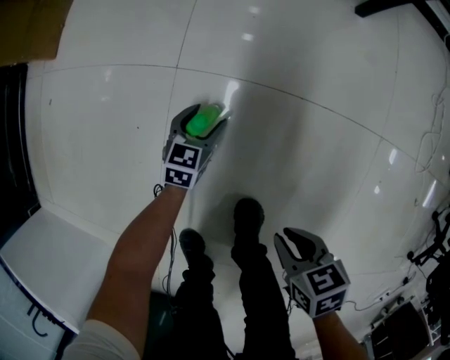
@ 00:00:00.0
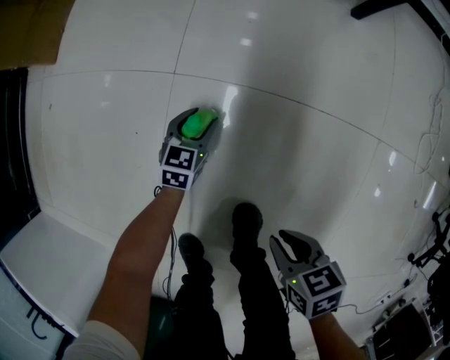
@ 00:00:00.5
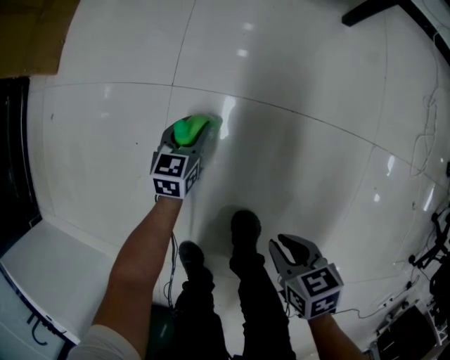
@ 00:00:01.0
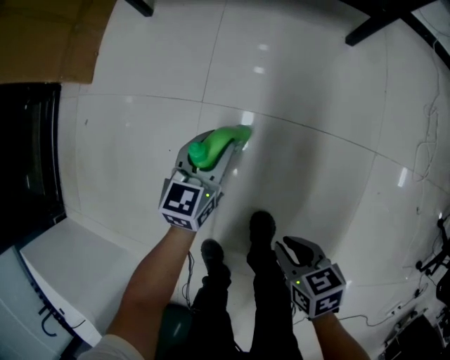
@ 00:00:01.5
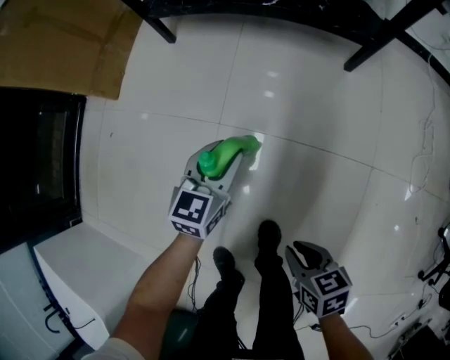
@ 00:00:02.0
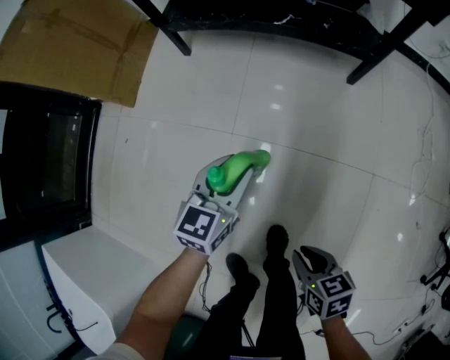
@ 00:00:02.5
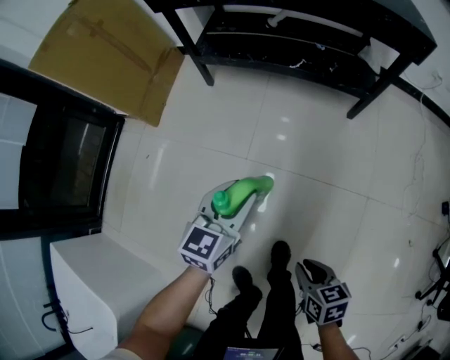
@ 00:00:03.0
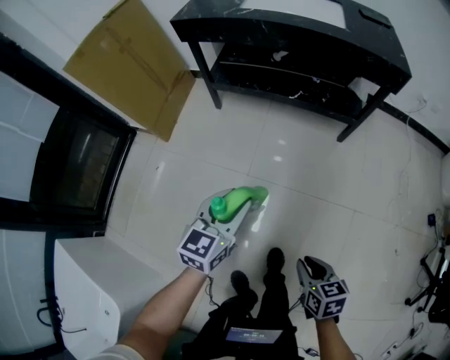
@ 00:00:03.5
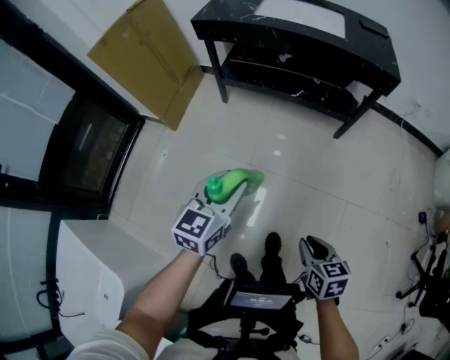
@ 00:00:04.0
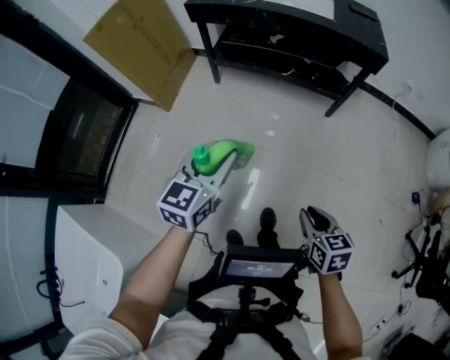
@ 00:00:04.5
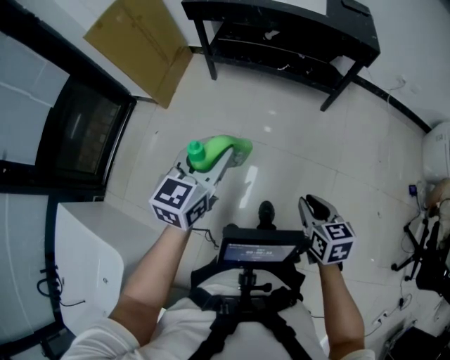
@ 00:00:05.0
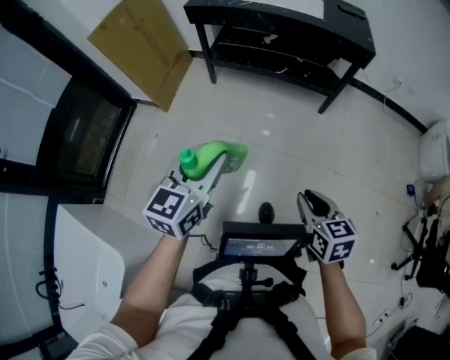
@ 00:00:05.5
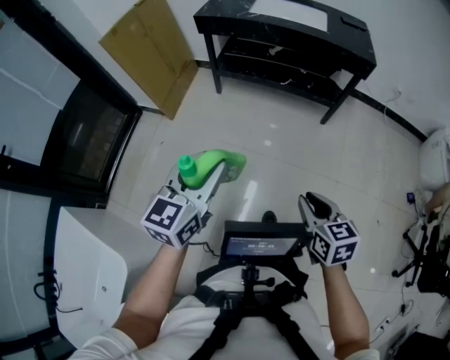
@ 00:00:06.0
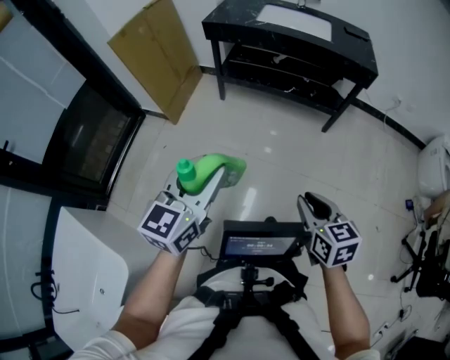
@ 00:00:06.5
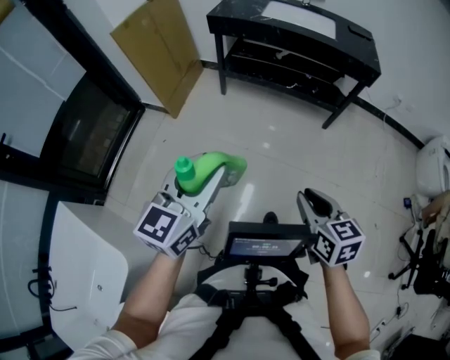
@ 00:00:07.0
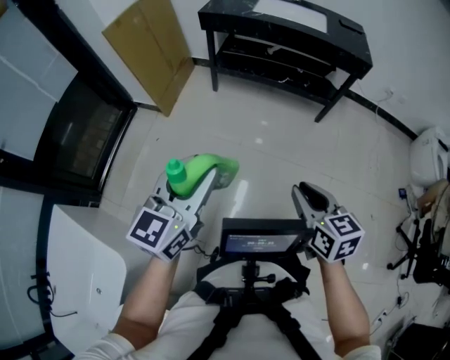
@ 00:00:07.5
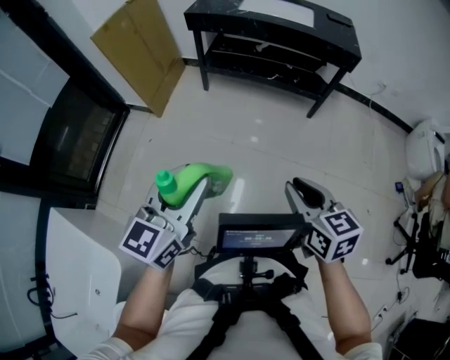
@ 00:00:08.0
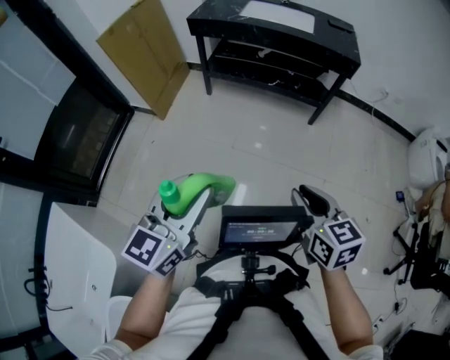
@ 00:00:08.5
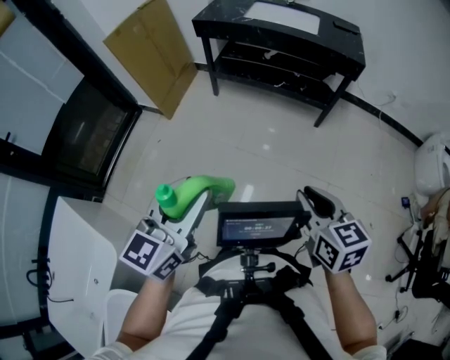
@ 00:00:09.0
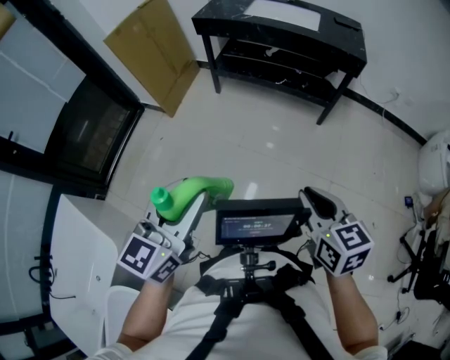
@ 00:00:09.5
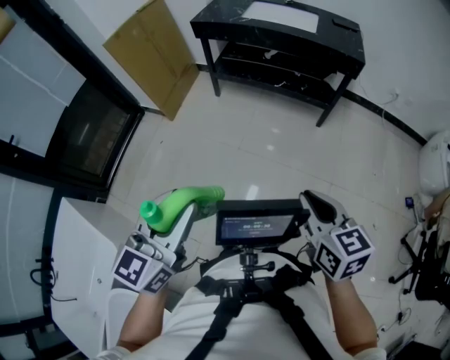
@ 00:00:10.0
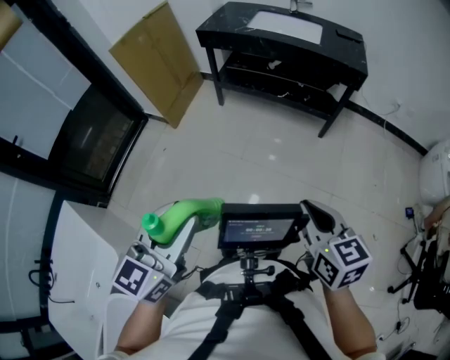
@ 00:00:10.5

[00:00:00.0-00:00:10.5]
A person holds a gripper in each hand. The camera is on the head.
00:00:00.0 to 00:00:02.0: The right gripper moves upward, approximately 15 cm; the left gripper heads upward, covering roughly 30 cm, and closes up.
00:00:02.0 to 00:00:04.0: Both grippers travel together upward, approximately 35 cm. The right gripper swivels about 20 degrees.
00:00:04.0 to 00:00:06.5: The right gripper goes about 15 cm upward and to the left, while the left gripper shifts about 20 cm upward, backward and to the left.
00:00:06.5 to 00:00:08.5: The left gripper moves backward, roughly 10 cm; the right gripper shifts by approximately 5 cm.
00:00:08.5 to 00:00:10.5: The grippers make only small movements.

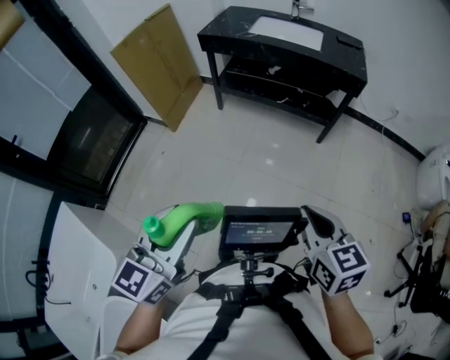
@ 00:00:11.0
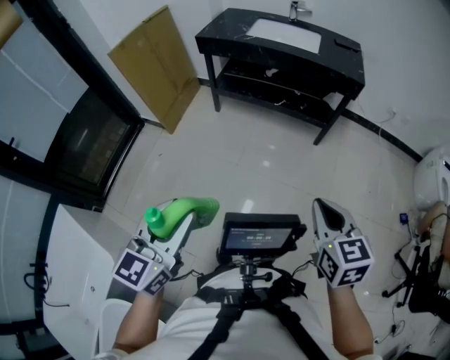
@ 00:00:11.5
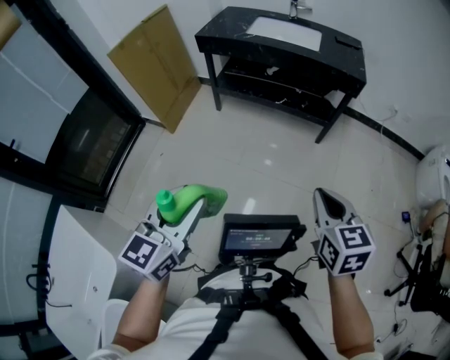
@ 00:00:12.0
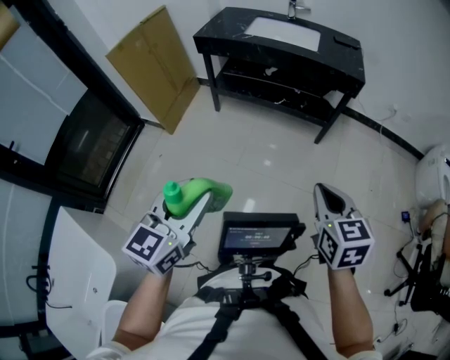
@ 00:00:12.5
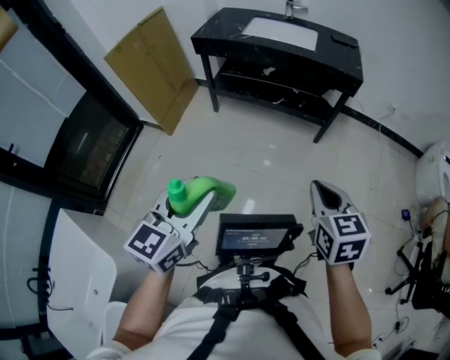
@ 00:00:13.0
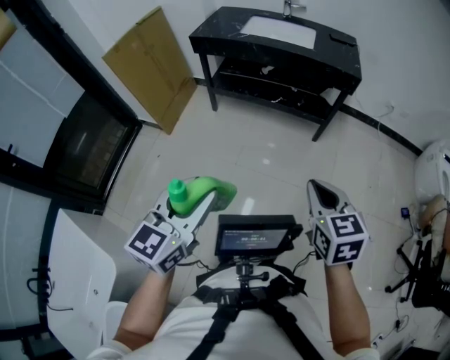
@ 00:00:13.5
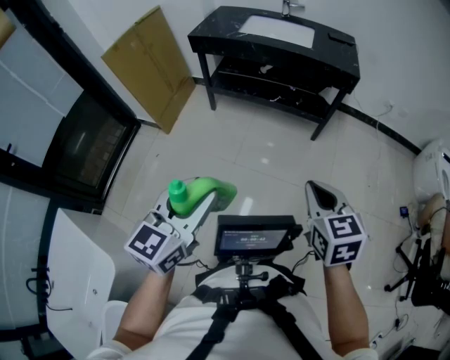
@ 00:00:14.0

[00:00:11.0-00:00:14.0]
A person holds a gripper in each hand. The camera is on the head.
00:00:11.0 to 00:00:12.5: Both grippers move forward, approximately 5 cm.
00:00:12.5 to 00:00:14.0: The grippers move only a little.

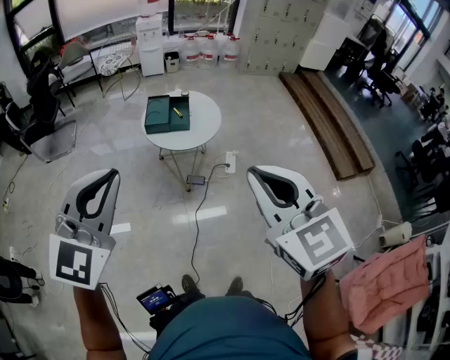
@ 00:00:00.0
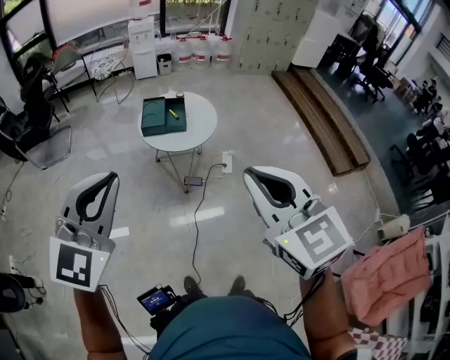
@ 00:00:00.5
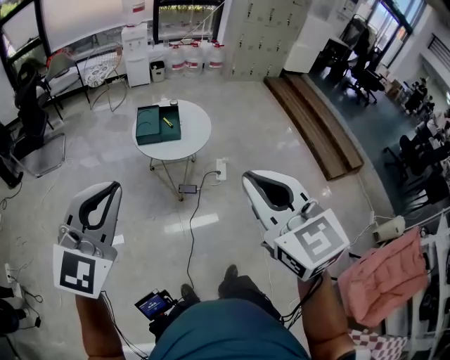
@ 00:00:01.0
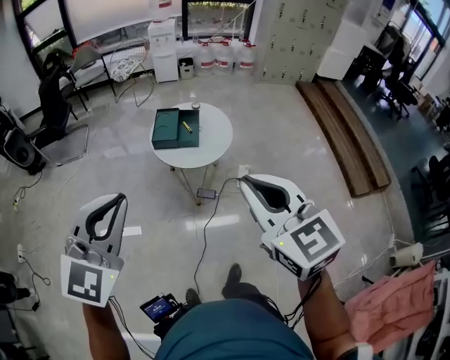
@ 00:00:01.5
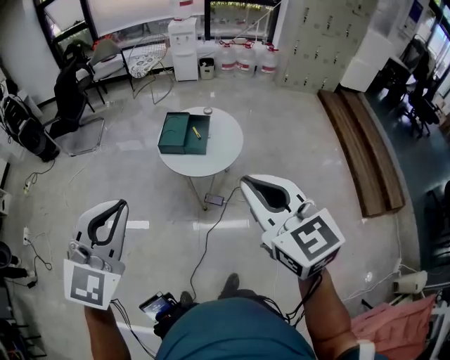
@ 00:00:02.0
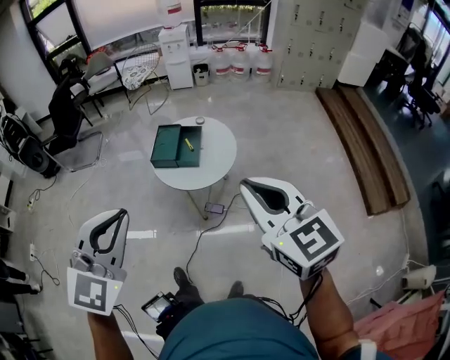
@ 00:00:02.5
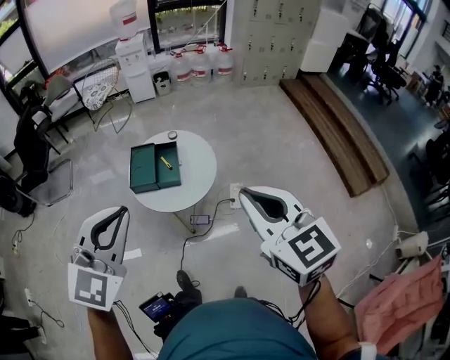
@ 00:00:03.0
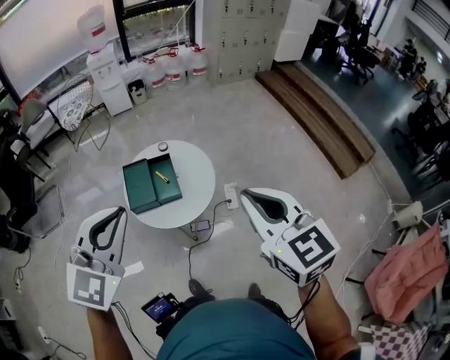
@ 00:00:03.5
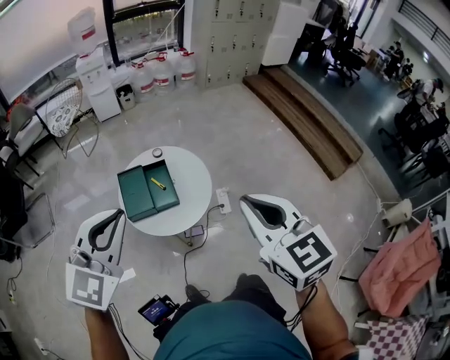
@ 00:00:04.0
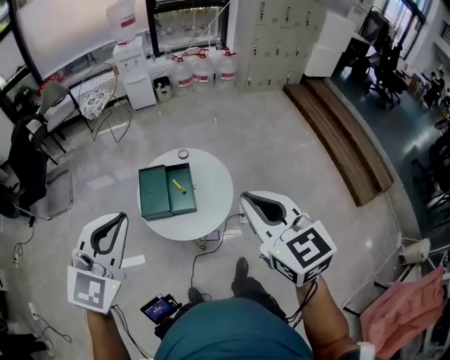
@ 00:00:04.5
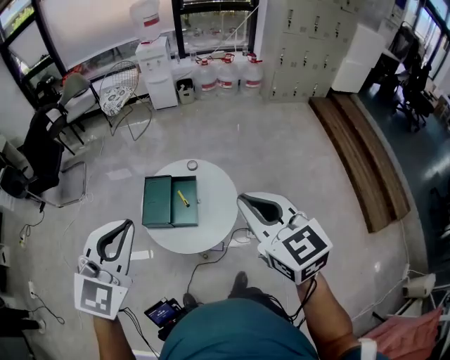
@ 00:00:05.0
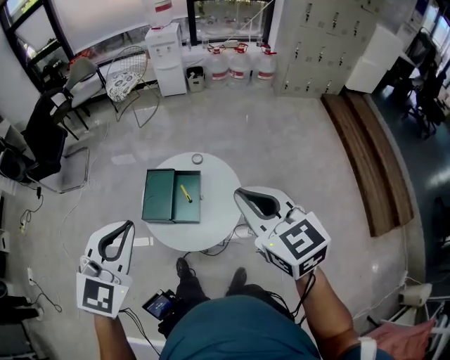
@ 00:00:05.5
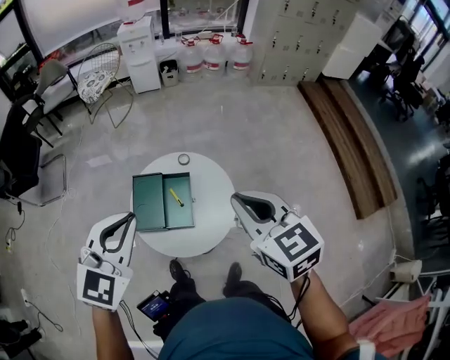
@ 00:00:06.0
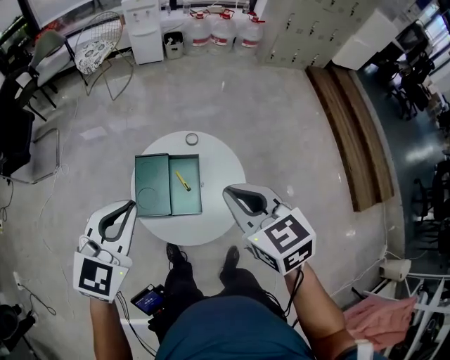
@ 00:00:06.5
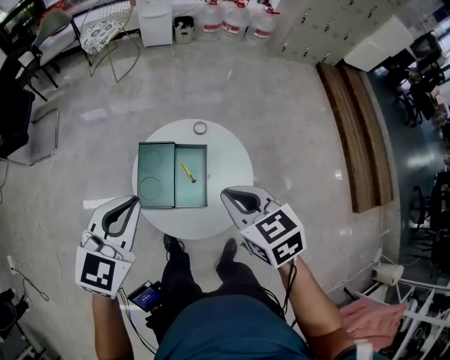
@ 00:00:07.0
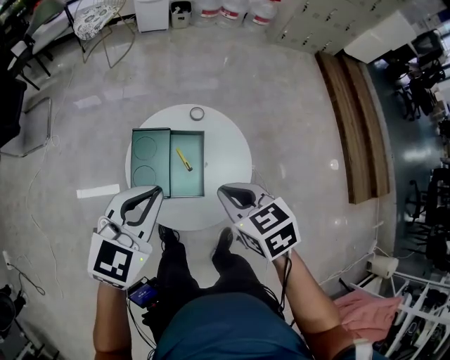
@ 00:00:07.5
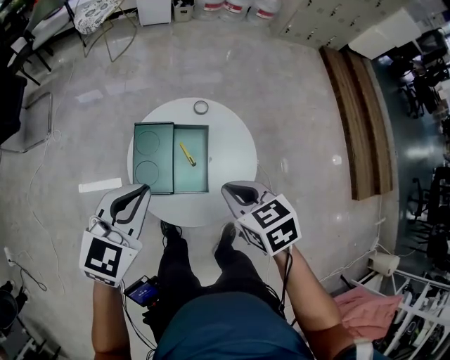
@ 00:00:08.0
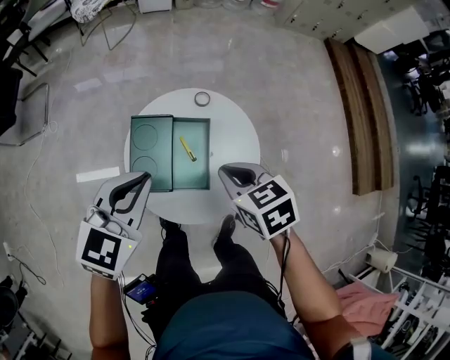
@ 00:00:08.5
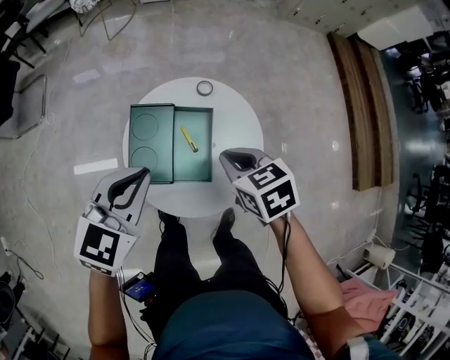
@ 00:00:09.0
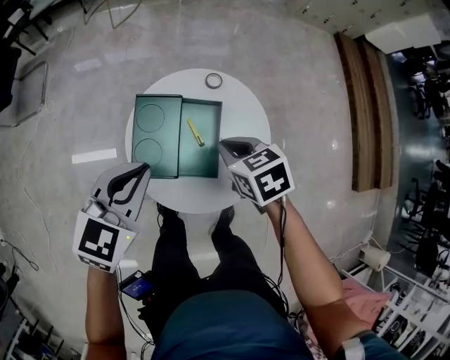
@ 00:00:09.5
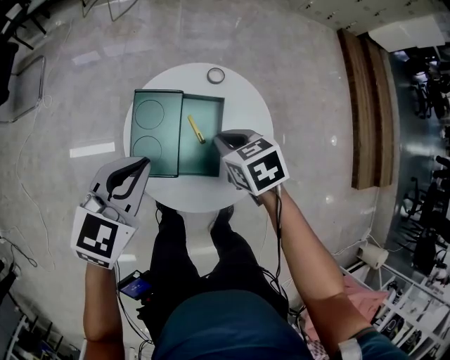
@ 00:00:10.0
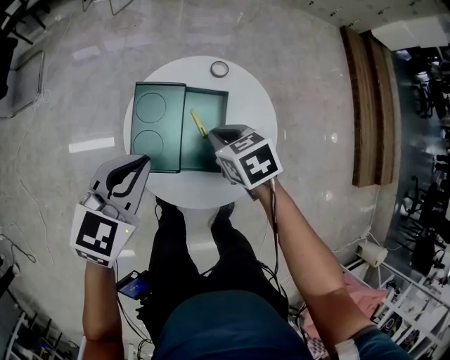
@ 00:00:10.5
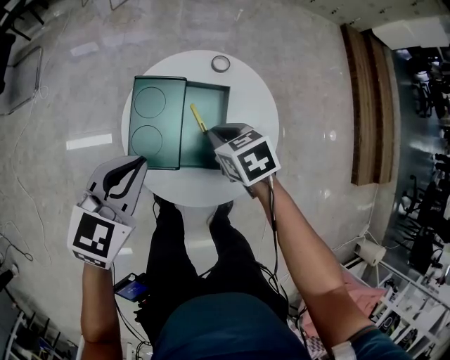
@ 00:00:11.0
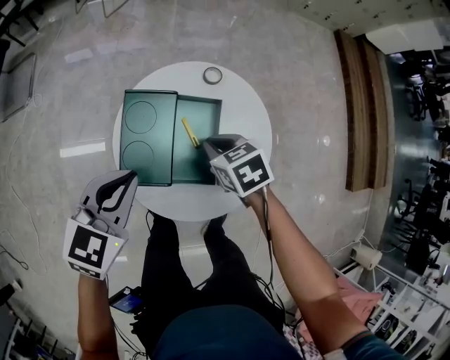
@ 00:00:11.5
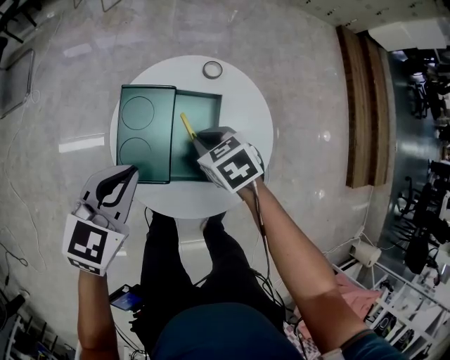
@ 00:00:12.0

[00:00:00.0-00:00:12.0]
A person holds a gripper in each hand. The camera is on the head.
00:00:00.0 to 00:00:02.0: The two grippers go roughly 20 cm forward and to the right.
00:00:02.0 to 00:00:04.0: The left gripper ends up about 35 cm from where it was, and changes its angle by roughly 30 degrees, while the right gripper ends up some 25 cm from where it was, and swivels roughly 30 degrees.
00:00:04.0 to 00:00:06.0: The right gripper moves about 30 cm, and turns by about 20 degrees. The left gripper ends up roughly 25 cm from where it was.
00:00:06.0 to 00:00:08.0: The left gripper goes about 20 cm downward and forward; the right gripper moves downward and to the left, approximately 25 cm, and changes its angle by approximately 30 degrees.
00:00:08.0 to 00:00:10.0: The left gripper moves downward, approximately 10 cm. The right gripper is displaced downward and forward by about 20 cm.
00:00:10.0 to 00:00:12.0: Both grippers move downward, about 10 cm.

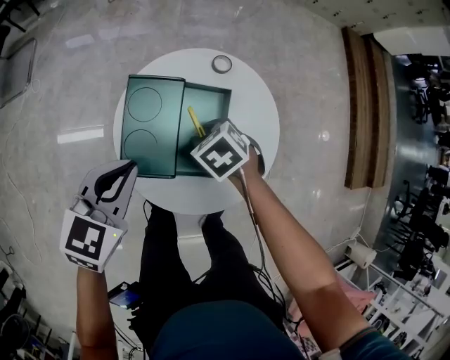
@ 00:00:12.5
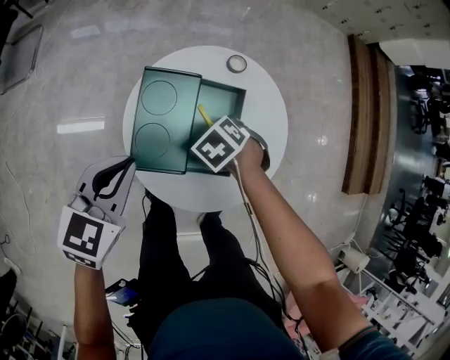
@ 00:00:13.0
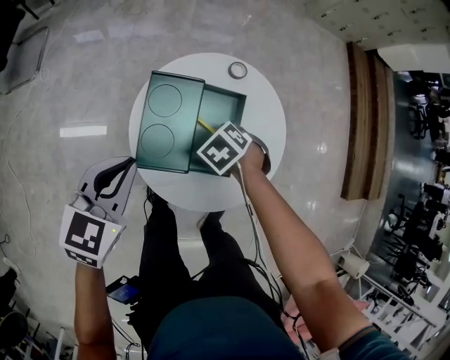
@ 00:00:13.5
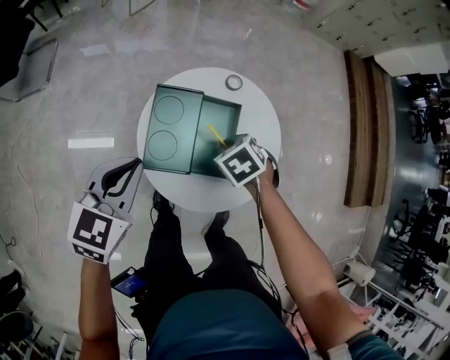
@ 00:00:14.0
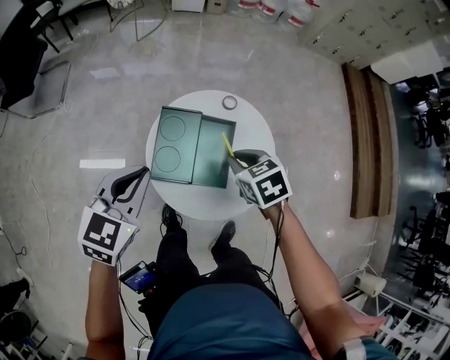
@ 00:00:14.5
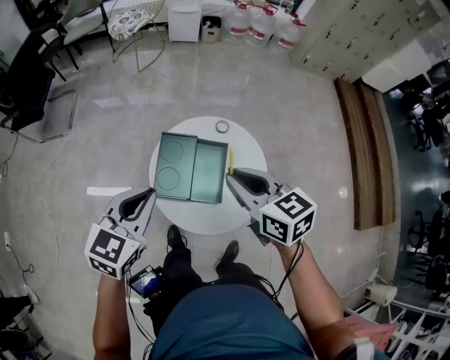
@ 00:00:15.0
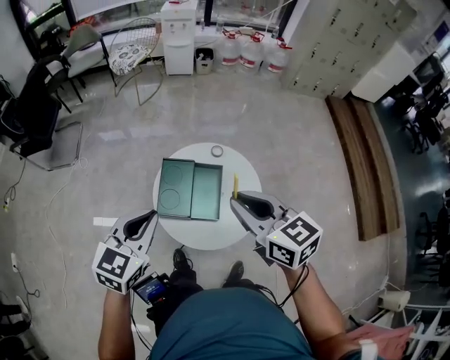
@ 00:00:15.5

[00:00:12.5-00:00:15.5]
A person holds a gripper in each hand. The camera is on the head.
00:00:12.5 to 00:00:14.0: The left gripper moves about 10 cm. Meanwhile the right gripper is displaced upward by some 5 cm.
00:00:14.0 to 00:00:15.5: The right gripper moves upward, about 40 cm, and points its fingers approximately 60 degrees further upward; the left gripper shifts about 20 cm upward.
